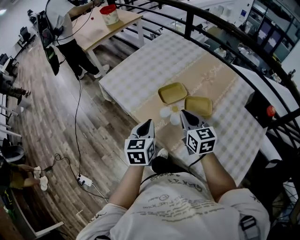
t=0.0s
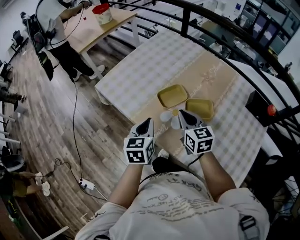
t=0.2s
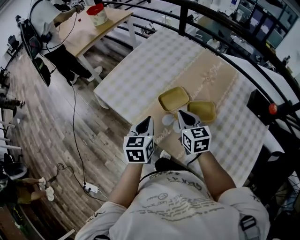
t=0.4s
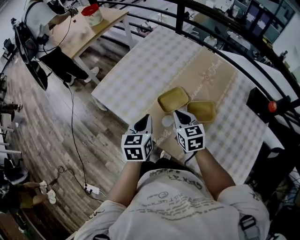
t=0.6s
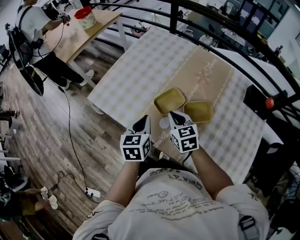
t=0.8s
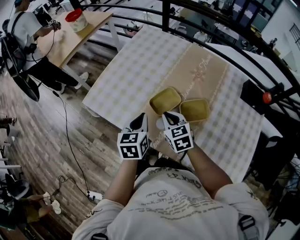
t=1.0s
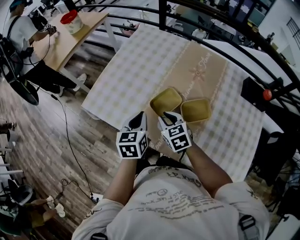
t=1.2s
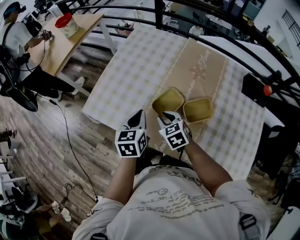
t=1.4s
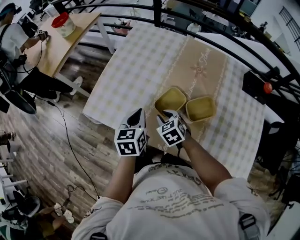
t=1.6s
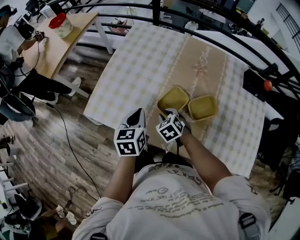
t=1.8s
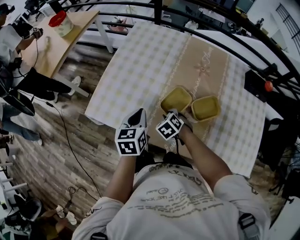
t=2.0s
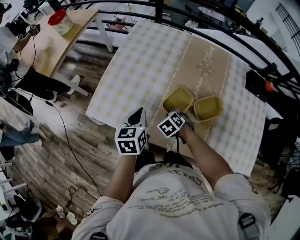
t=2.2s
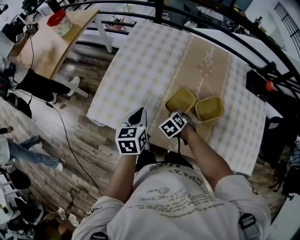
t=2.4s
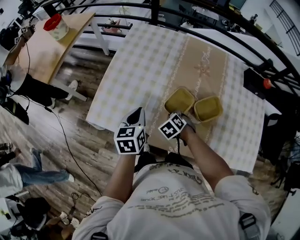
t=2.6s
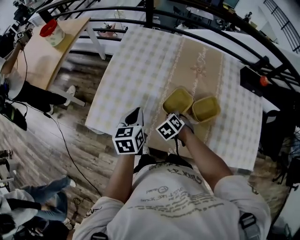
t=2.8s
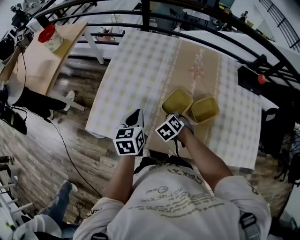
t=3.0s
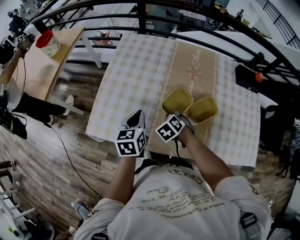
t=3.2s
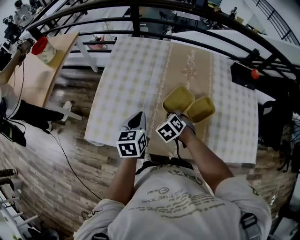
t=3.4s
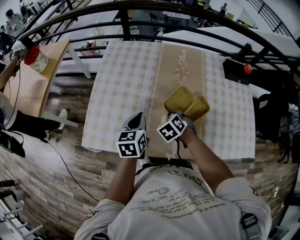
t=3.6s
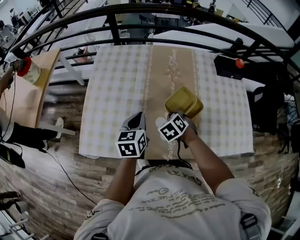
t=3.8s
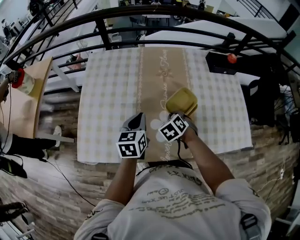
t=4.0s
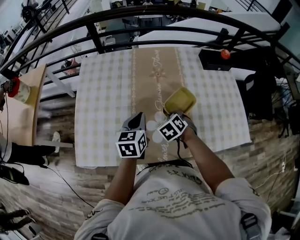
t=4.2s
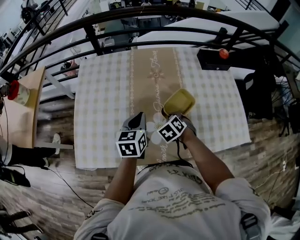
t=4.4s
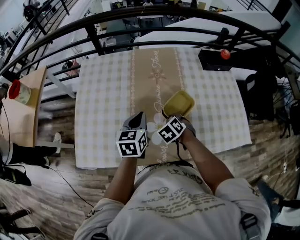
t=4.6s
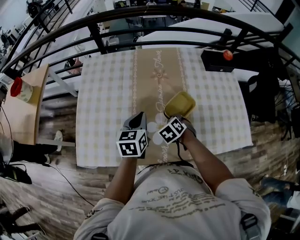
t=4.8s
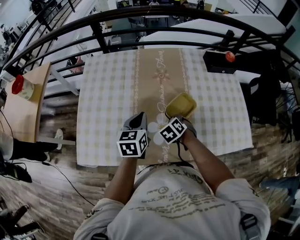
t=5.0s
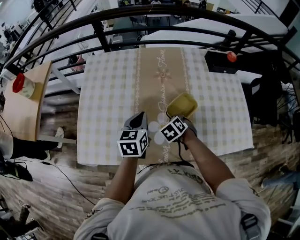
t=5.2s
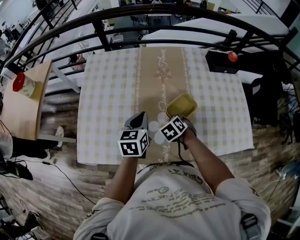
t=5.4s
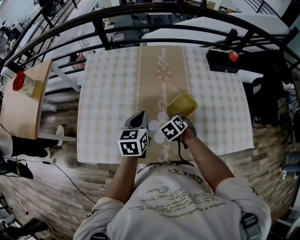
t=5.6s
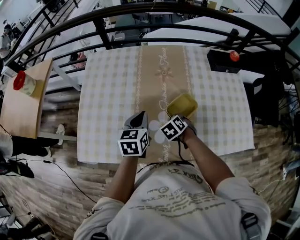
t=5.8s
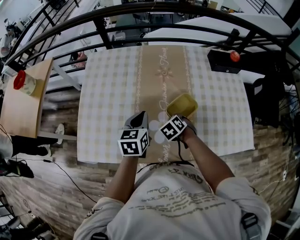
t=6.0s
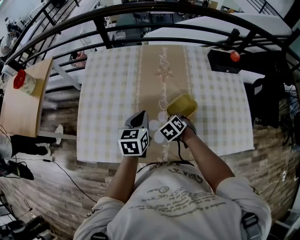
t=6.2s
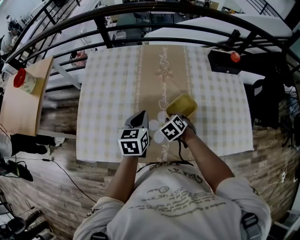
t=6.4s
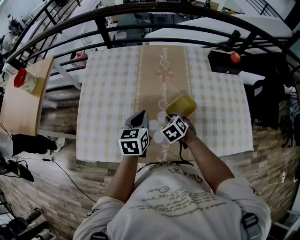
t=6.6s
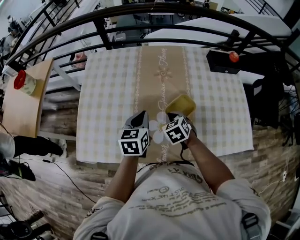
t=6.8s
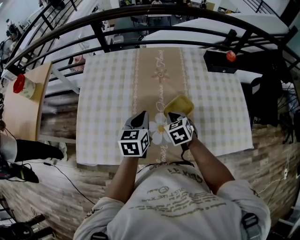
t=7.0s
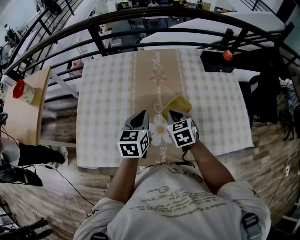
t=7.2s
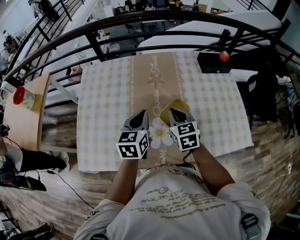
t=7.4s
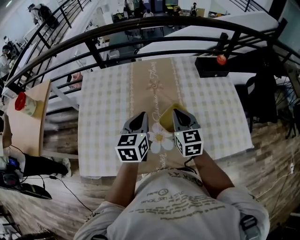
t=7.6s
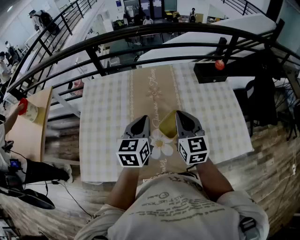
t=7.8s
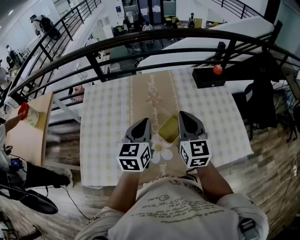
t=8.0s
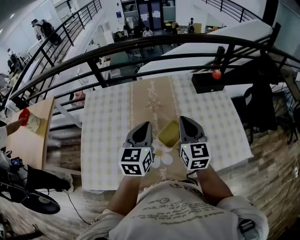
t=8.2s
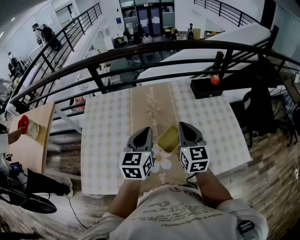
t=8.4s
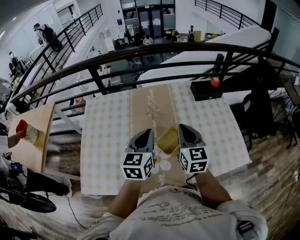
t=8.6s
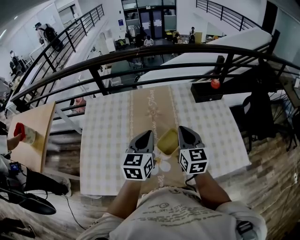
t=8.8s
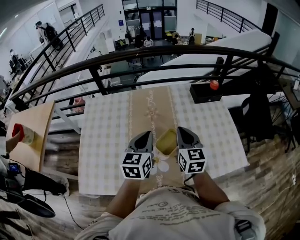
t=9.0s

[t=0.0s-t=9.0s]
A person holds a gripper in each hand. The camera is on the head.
t=0.0s to t=1.6s: The right gripper is displaced forward, downward and to the left by approximately 20 cm, changes its angle by some 30 degrees, and opens, while the left gripper shifts some 20 cm forward.
t=1.6s to t=3.0s: The right gripper moves roughly 5 cm, and turns by some 20 degrees, while the left gripper shifts about 5 cm to the left.
t=3.0s to t=4.4s: The right gripper travels to the right by some 15 cm, and swivels about 20 degrees. Meanwhile the left gripper goes approximately 15 cm to the right and forward, and turns by some 20 degrees.
t=4.4s to t=6.0s: There are only small adjustments of the grippers.
t=6.0s to t=7.6s: The right gripper moves upward, some 20 cm, and tilts its fingers about 50 degrees upward, while the left gripper goes some 10 cm upward.
t=7.6s to t=9.0s: The grippers both shift upward by approximately 5 cm.

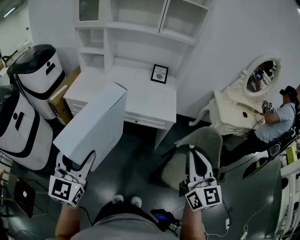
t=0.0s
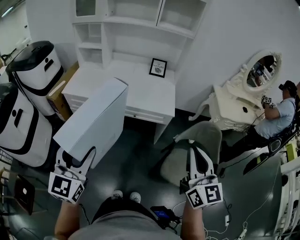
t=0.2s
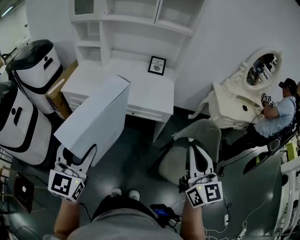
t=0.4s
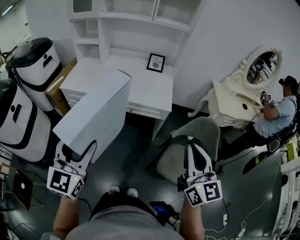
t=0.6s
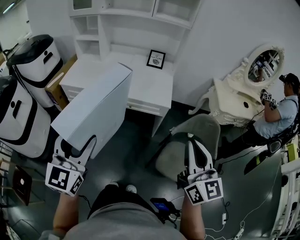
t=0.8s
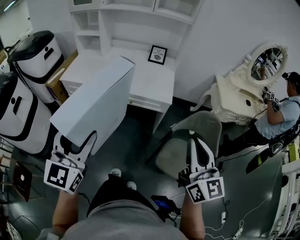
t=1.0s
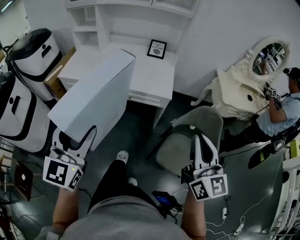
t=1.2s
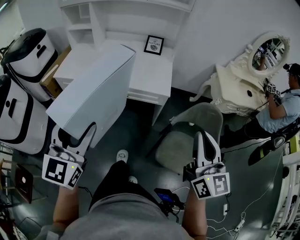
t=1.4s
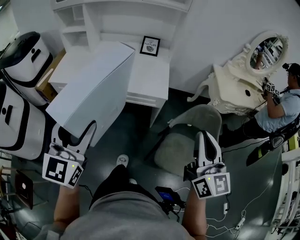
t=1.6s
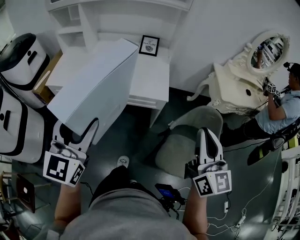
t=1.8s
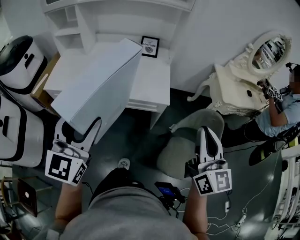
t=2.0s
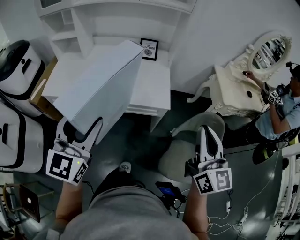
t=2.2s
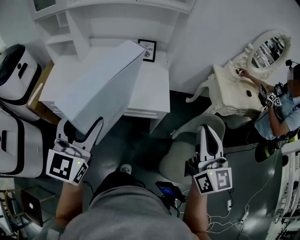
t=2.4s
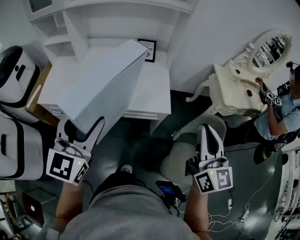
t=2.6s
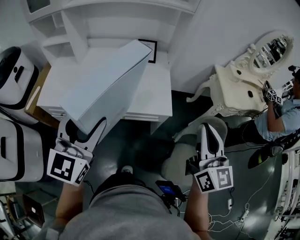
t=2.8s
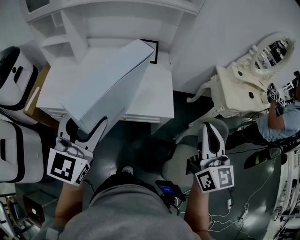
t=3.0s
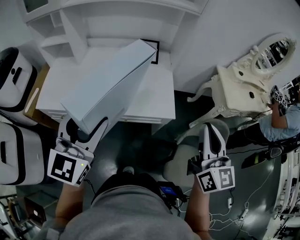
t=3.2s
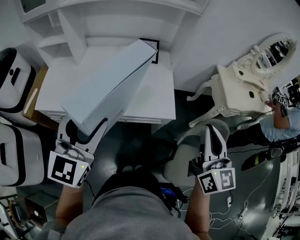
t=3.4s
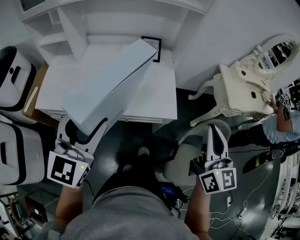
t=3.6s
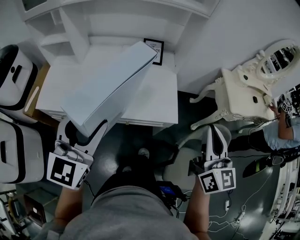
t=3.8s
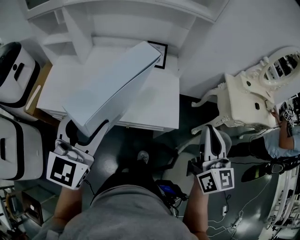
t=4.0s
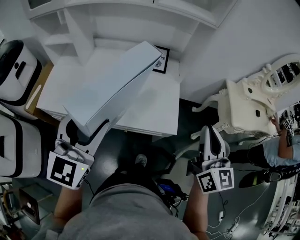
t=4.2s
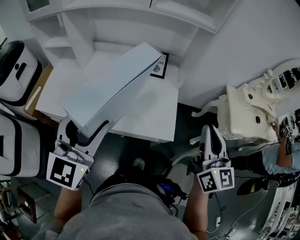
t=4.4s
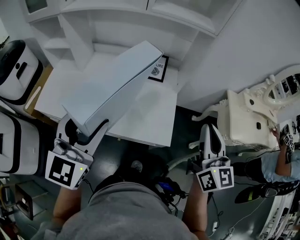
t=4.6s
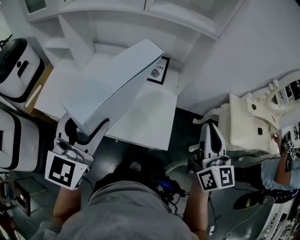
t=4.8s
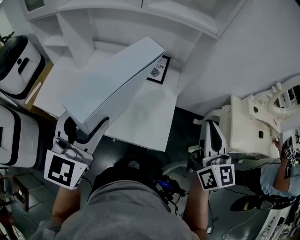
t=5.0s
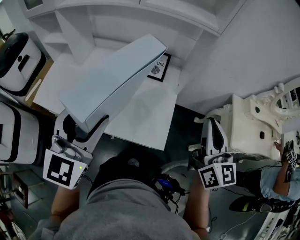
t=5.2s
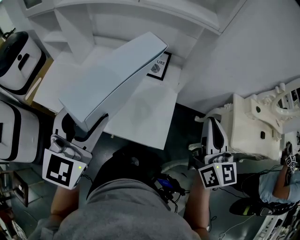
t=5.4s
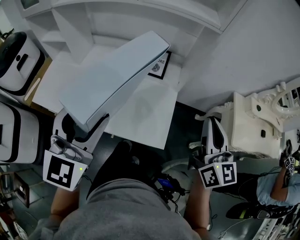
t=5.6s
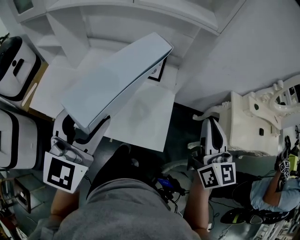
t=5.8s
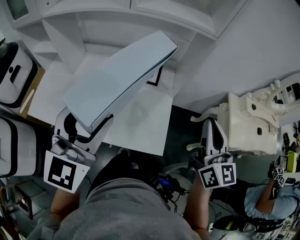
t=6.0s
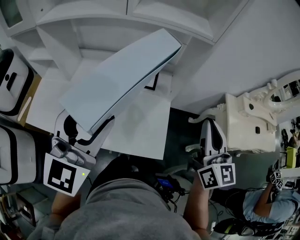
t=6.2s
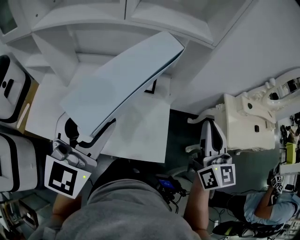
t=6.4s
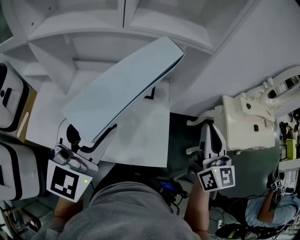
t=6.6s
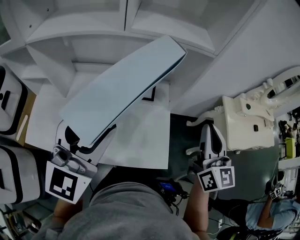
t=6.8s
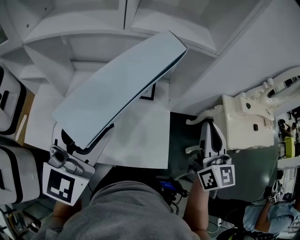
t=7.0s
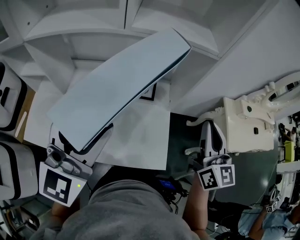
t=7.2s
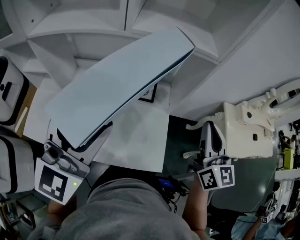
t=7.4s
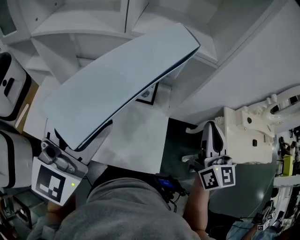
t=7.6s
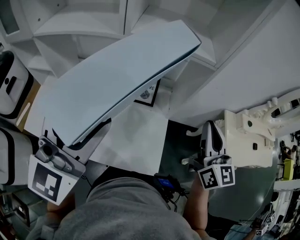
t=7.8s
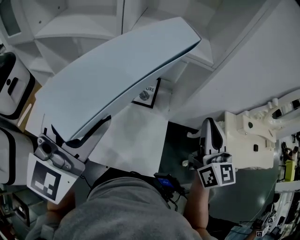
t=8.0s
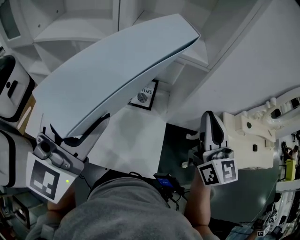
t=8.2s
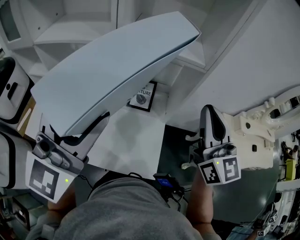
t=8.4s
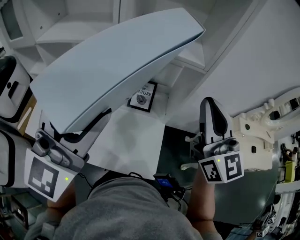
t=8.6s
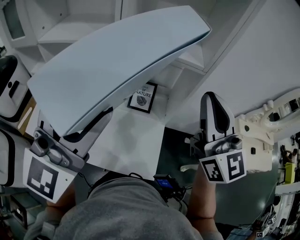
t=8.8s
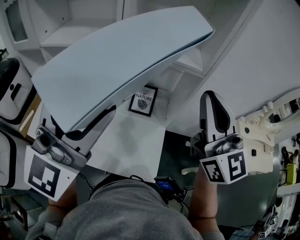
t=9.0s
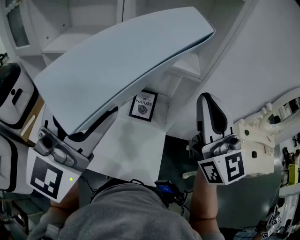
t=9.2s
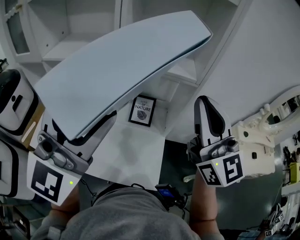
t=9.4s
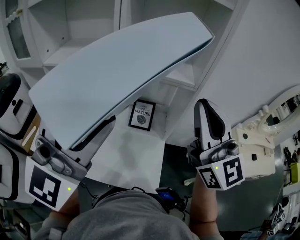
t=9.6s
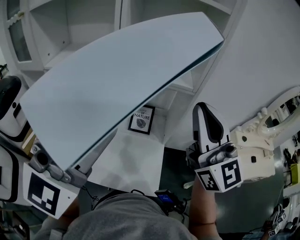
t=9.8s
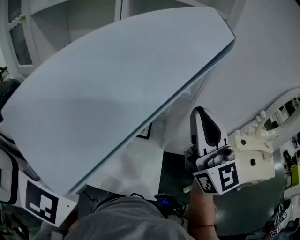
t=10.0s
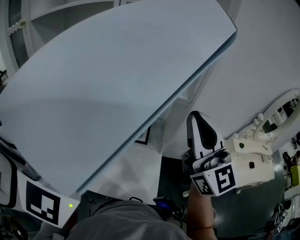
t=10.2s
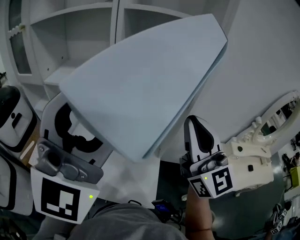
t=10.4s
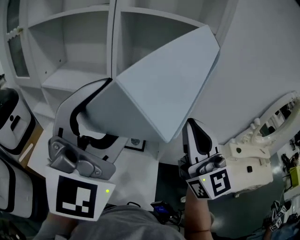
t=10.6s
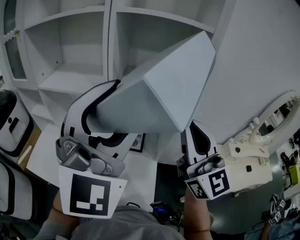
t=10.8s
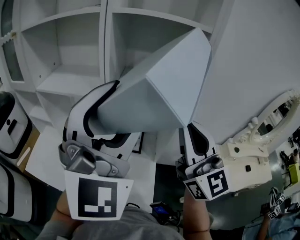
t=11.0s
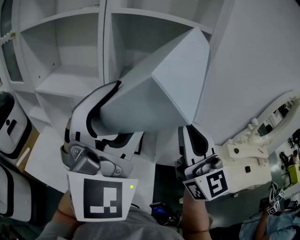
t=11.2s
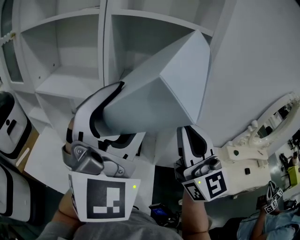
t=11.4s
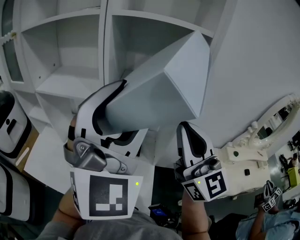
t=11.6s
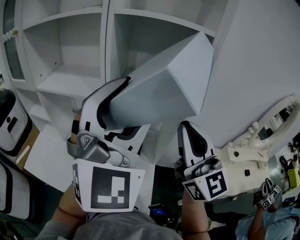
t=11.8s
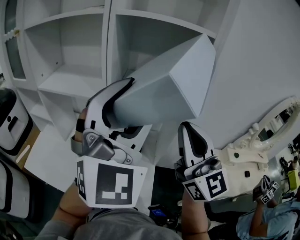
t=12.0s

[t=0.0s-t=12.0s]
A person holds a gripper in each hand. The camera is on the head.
t=0.0s to t=1.6s: The two grippers go about 15 cm to the right and forward.
t=1.6s to t=3.0s: The two grippers go approximately 20 cm forward.
t=3.0s to t=4.4s: The left gripper moves forward, about 10 cm. Meanwhile the right gripper moves forward, some 15 cm.
t=4.4s to t=6.0s: The grippers both shift forward and to the right by about 15 cm.
t=6.0s to t=7.6s: The left gripper shifts some 10 cm forward and upward; the right gripper goes roughly 10 cm forward.
t=7.6s to t=9.0s: The left gripper moves upward, about 10 cm. Meanwhile the right gripper is displaced upward and to the left by roughly 15 cm, and turns by some 30 degrees.
t=9.0s to t=10.4s: The right gripper shifts by roughly 5 cm. Meanwhile the left gripper is displaced upward by roughly 10 cm, and rotates roughly 20 degrees.
t=10.4s to t=12.0s: The left gripper moves forward and to the right, about 10 cm.

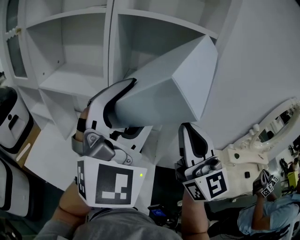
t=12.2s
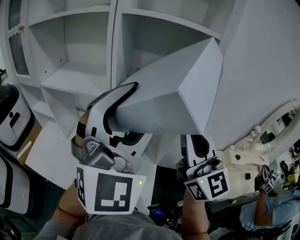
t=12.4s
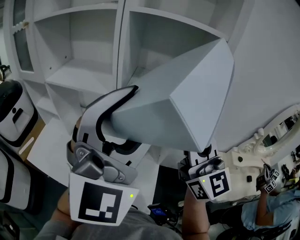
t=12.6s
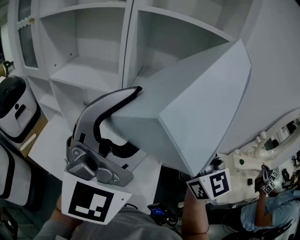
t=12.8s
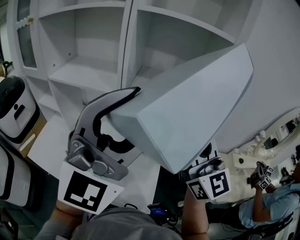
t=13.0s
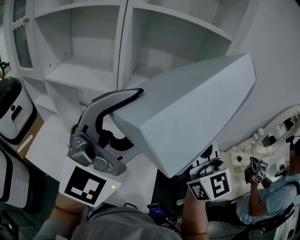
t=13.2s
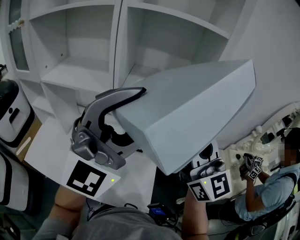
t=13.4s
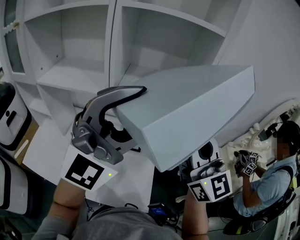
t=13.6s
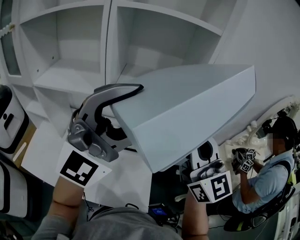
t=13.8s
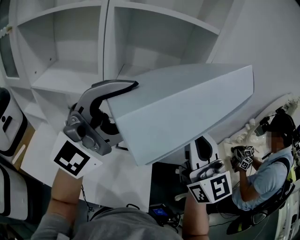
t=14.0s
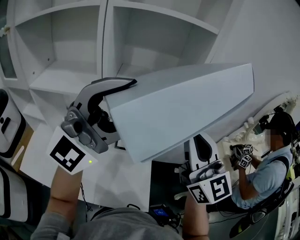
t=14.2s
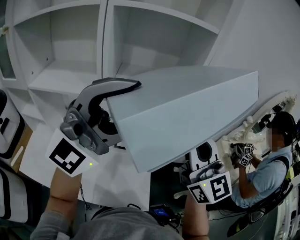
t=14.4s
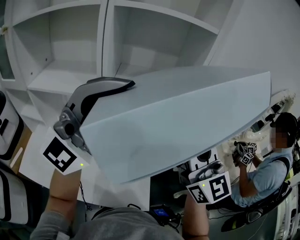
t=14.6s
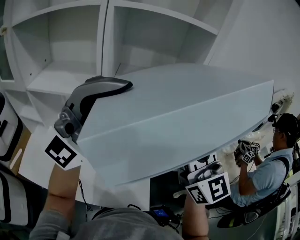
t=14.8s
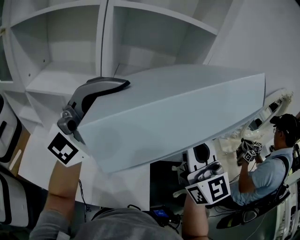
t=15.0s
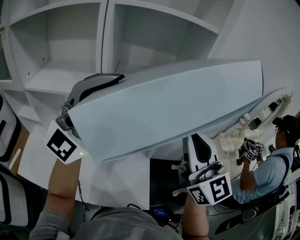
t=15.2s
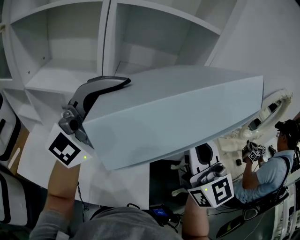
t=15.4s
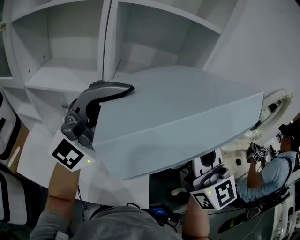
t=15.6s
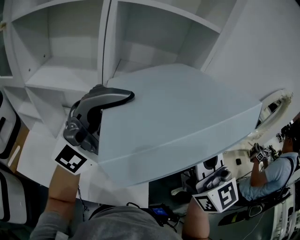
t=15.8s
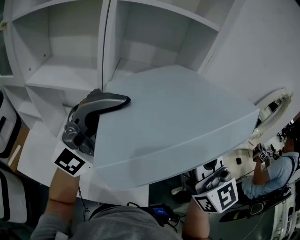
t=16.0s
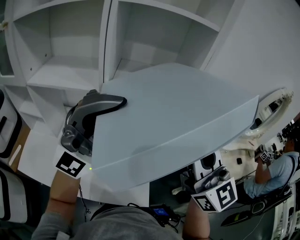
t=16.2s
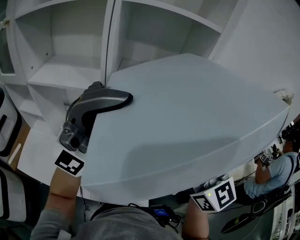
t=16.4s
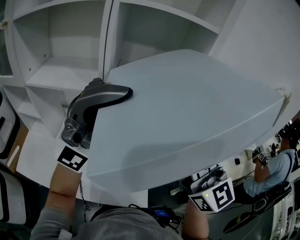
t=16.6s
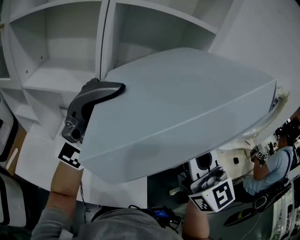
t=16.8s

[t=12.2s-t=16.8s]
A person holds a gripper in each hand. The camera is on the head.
t=12.2s to t=13.8s: The left gripper swivels about 30 degrees.
t=13.8s to t=15.2s: The left gripper changes its angle by roughly 20 degrees.
t=15.2s to t=16.8s: The grippers stay close to where they were, moving slightly.
